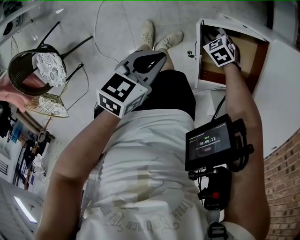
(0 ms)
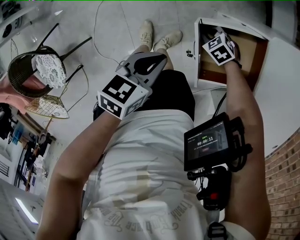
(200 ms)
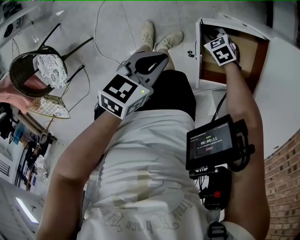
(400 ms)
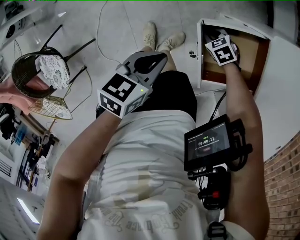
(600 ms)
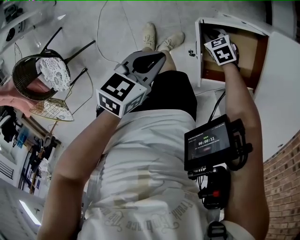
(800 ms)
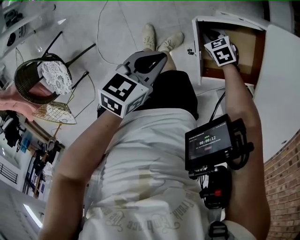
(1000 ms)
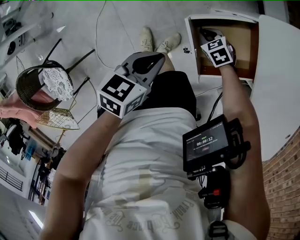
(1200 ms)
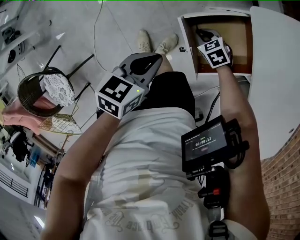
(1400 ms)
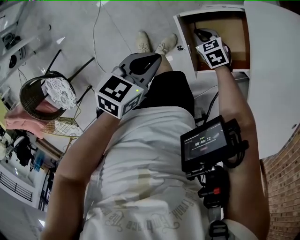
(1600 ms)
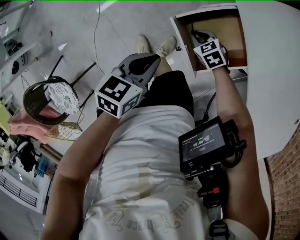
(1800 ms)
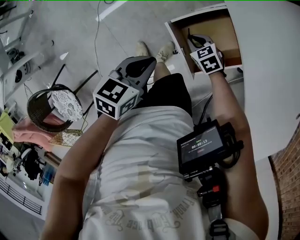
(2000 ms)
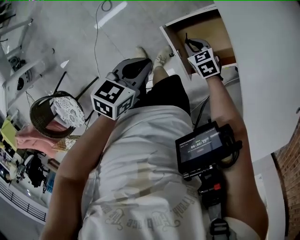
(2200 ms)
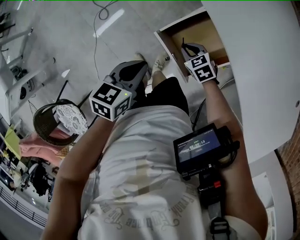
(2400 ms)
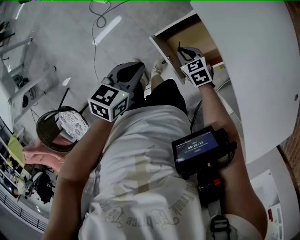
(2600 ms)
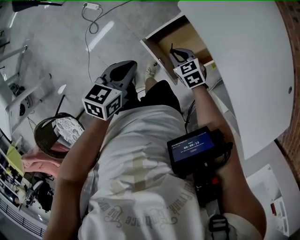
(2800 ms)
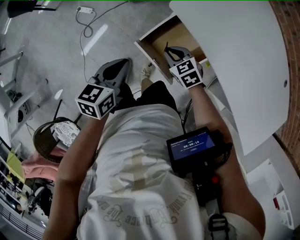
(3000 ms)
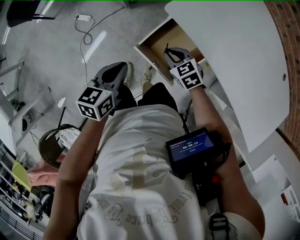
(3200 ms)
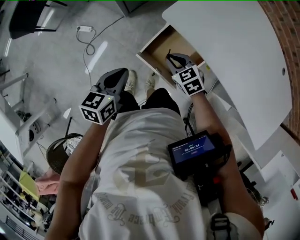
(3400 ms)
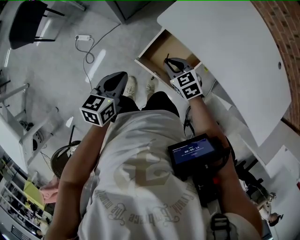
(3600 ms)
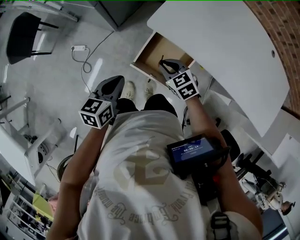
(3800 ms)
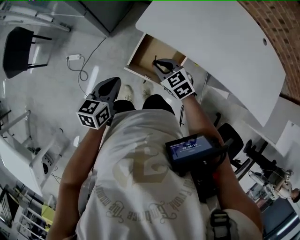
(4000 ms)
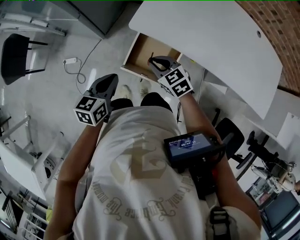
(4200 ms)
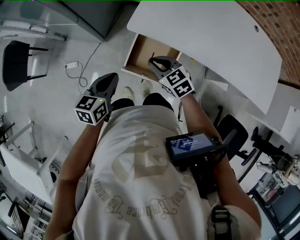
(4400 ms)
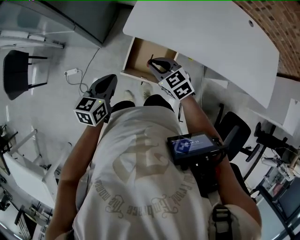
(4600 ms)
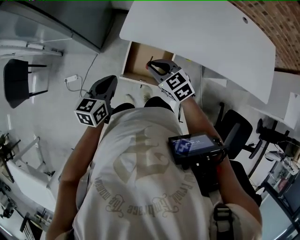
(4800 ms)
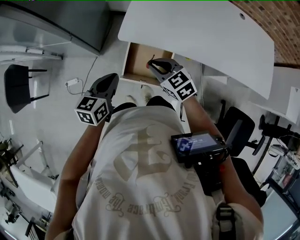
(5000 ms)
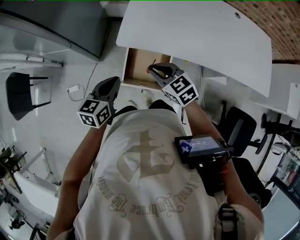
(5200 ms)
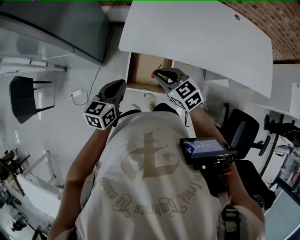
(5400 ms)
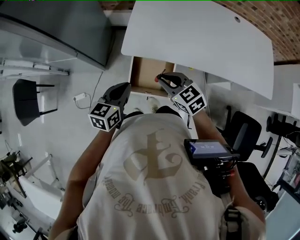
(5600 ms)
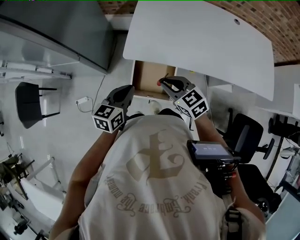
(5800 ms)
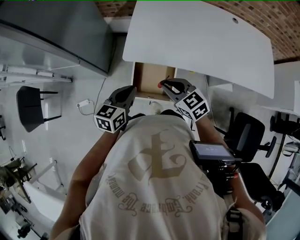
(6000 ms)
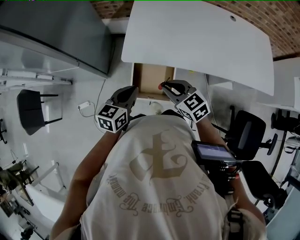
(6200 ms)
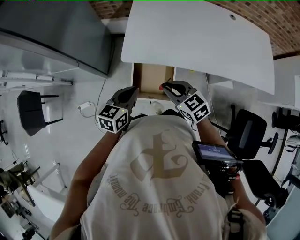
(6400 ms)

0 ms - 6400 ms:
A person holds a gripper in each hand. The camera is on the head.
0 ms - 1600 ms: The right gripper rotates about 20 degrees.
1600 ms - 3200 ms: The right gripper moves upward, approximately 20 cm, and rotates some 30 degrees; the left gripper travels upward and forward by approximately 10 cm.
3200 ms - 4800 ms: The left gripper travels upward by about 10 cm, and turns by approximately 30 degrees, while the right gripper moves upward, about 20 cm, and rotates roughly 30 degrees.
4800 ms - 6400 ms: The left gripper goes approximately 10 cm to the right. Meanwhile the right gripper shifts by roughly 5 cm.

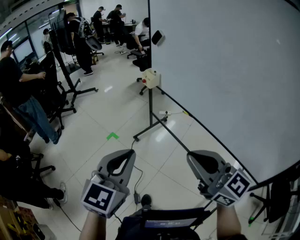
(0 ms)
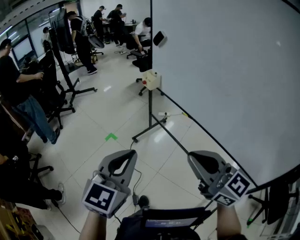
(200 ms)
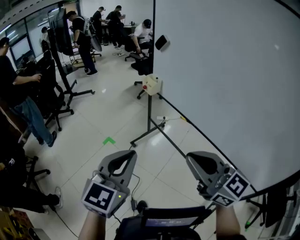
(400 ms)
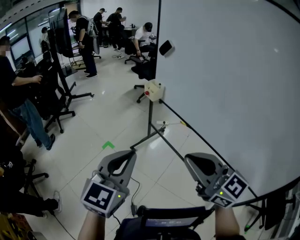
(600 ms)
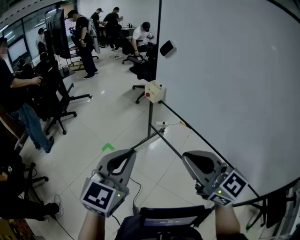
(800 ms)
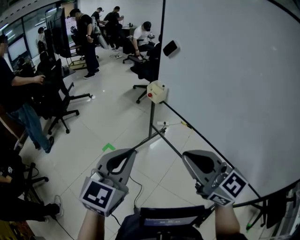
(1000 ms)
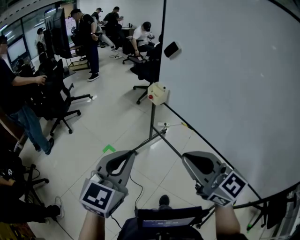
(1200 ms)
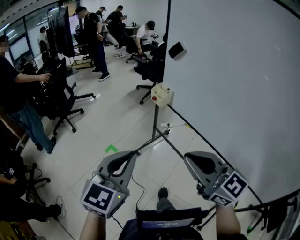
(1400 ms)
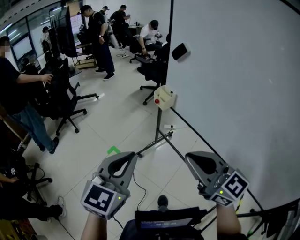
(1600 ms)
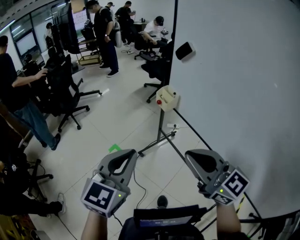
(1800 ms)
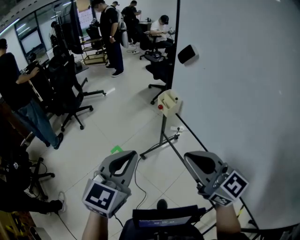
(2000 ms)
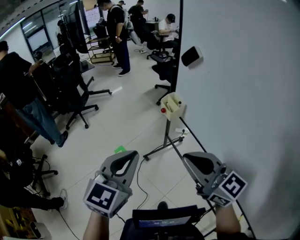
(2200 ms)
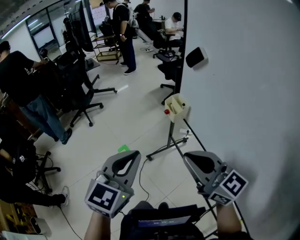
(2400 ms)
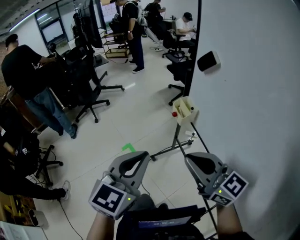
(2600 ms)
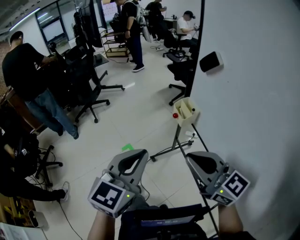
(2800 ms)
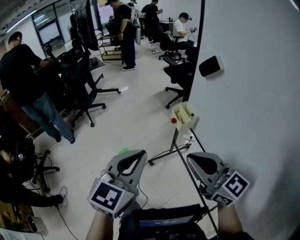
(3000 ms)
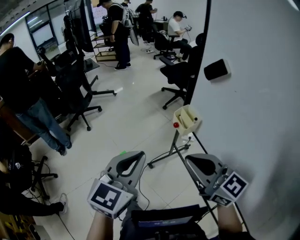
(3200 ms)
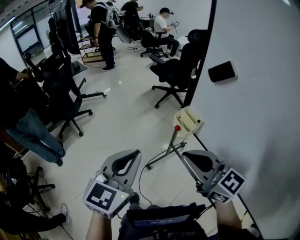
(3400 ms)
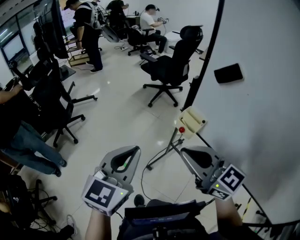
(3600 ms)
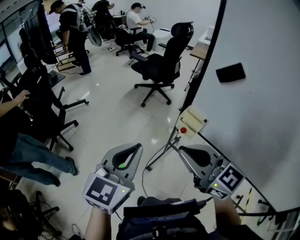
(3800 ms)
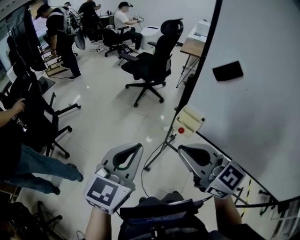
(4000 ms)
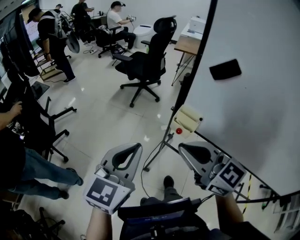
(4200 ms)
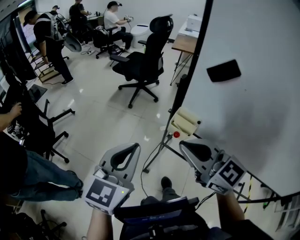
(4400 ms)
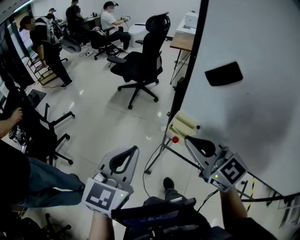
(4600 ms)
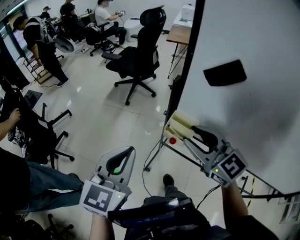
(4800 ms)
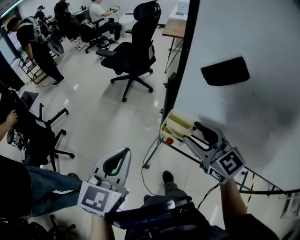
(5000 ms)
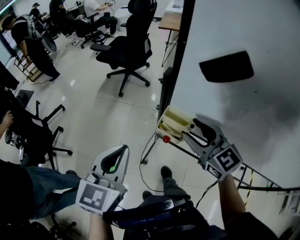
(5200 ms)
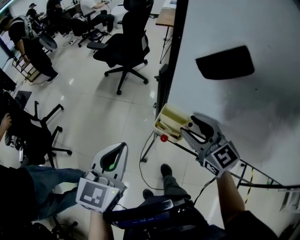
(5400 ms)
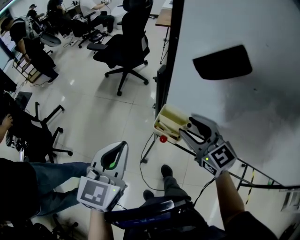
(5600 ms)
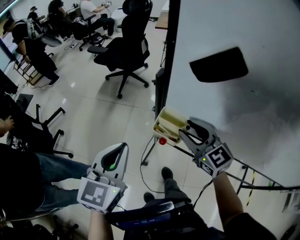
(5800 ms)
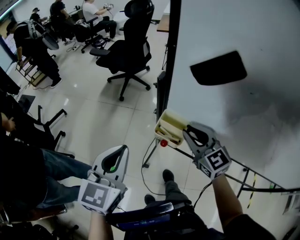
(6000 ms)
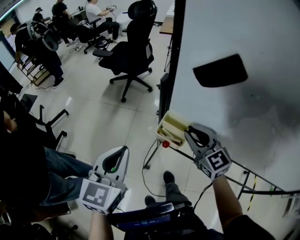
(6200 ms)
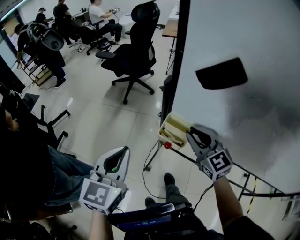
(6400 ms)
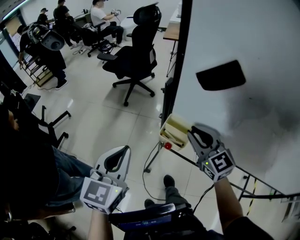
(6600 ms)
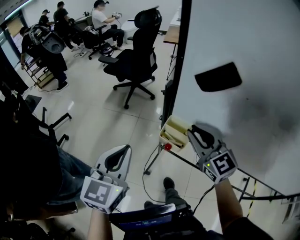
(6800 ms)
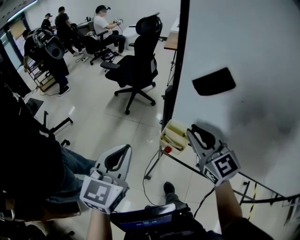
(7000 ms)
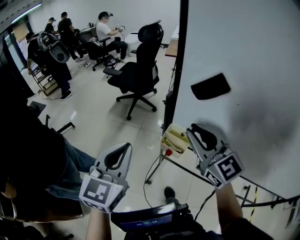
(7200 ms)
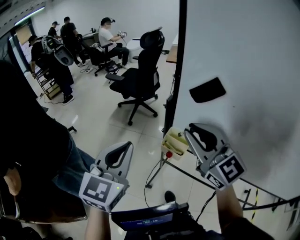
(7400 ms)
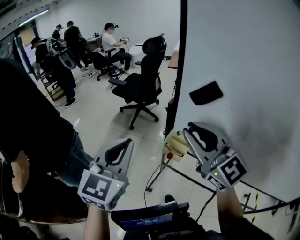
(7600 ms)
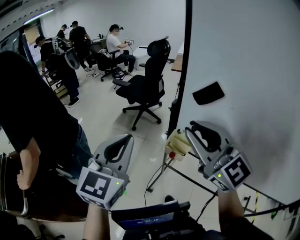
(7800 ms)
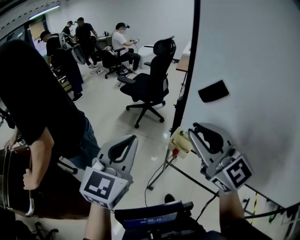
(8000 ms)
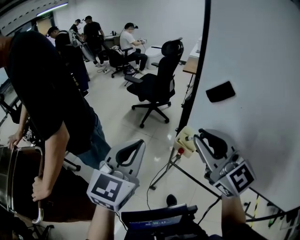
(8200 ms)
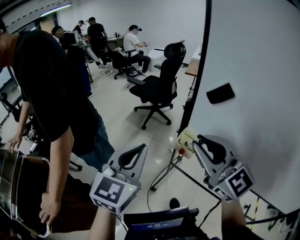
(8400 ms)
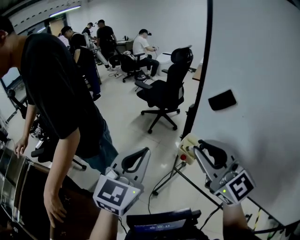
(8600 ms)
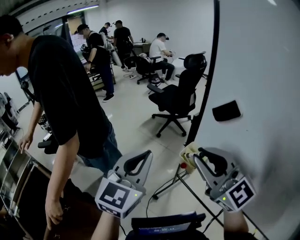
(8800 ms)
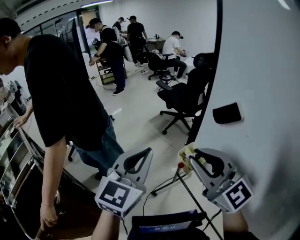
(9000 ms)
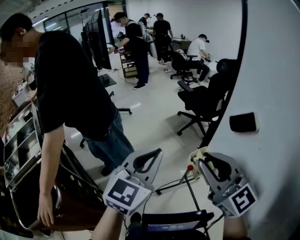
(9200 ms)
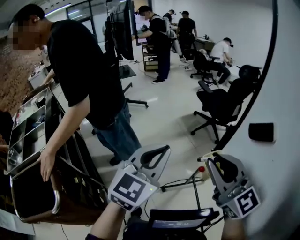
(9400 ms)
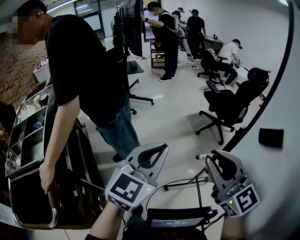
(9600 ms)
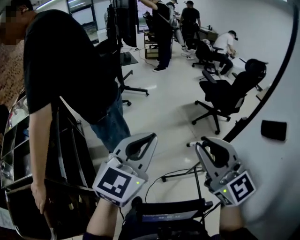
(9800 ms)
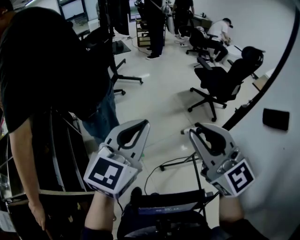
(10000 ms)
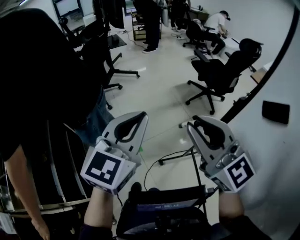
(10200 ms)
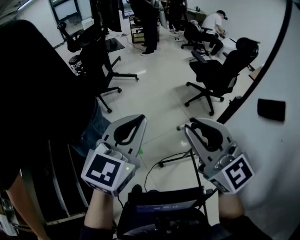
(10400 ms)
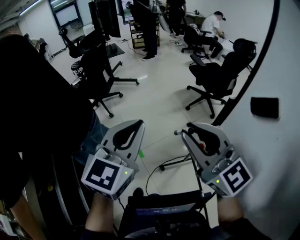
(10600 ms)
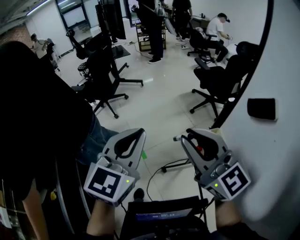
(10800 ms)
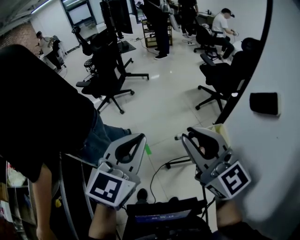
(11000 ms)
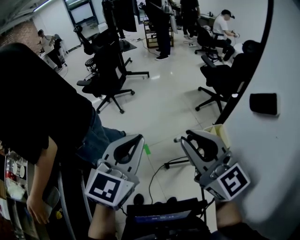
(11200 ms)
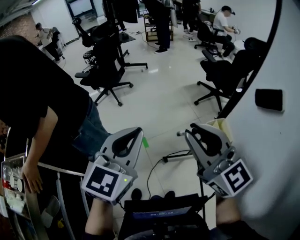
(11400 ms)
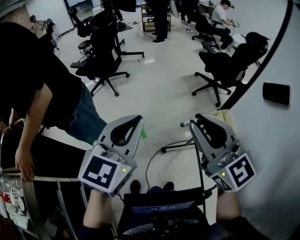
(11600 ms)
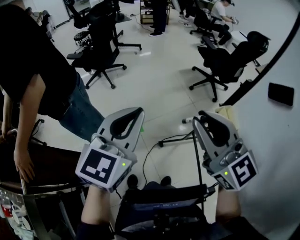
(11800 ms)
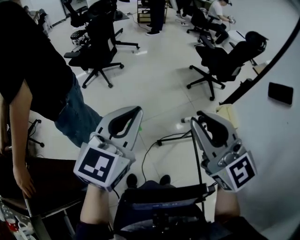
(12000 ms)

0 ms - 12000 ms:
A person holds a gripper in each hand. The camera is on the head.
0 ms - 1600 ms: The two grippers go about 20 cm forward.
1600 ms - 3000 ms: The right gripper moves forward, roughly 20 cm, while the left gripper shifts about 15 cm forward and to the right.
3000 ms - 4400 ms: The right gripper shifts by about 20 cm, and swivels some 30 degrees. The left gripper shifts by approximately 25 cm, and swivels some 30 degrees.
4400 ms - 6000 ms: The right gripper shifts about 25 cm forward, downward and to the right, rotates approximately 20 degrees, and opens, then closes once more, while the left gripper travels forward and downward by about 10 cm.
6000 ms - 7600 ms: The left gripper travels upward by approximately 15 cm, while the right gripper moves upward, some 25 cm, and turns by about 30 degrees.
7600 ms - 9000 ms: Both grippers move backward, some 5 cm. The left gripper swivels about 20 degrees. The right gripper changes its angle by about 30 degrees.
9000 ms - 10400 ms: The right gripper moves to the left and forward, approximately 10 cm; the left gripper moves to the left, approximately 10 cm.
10400 ms - 12000 ms: The right gripper moves backward and to the left, about 5 cm. The left gripper travels to the left and backward by roughly 10 cm.

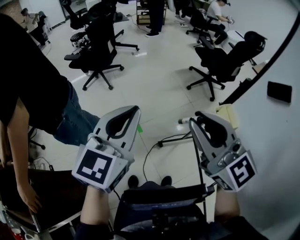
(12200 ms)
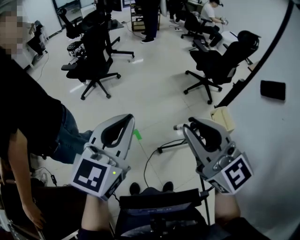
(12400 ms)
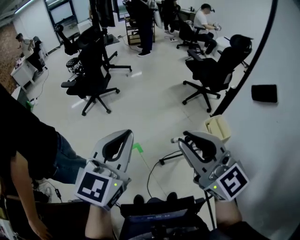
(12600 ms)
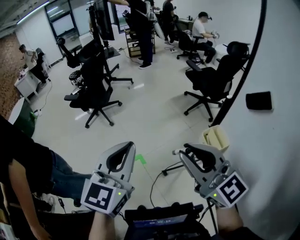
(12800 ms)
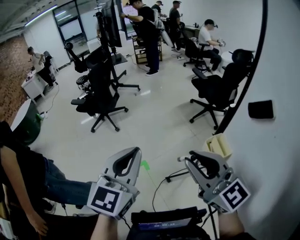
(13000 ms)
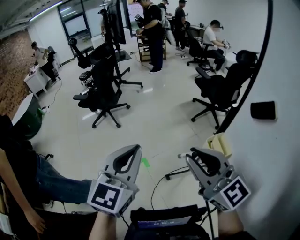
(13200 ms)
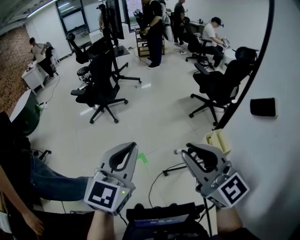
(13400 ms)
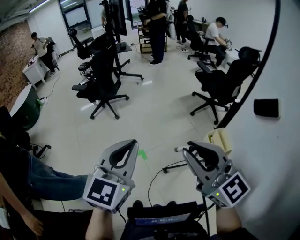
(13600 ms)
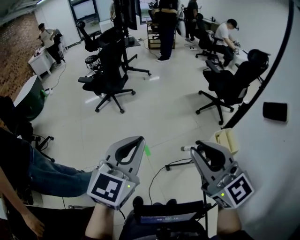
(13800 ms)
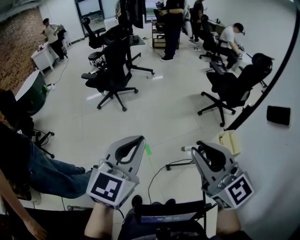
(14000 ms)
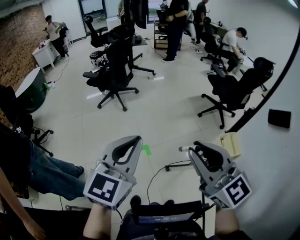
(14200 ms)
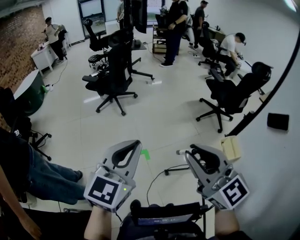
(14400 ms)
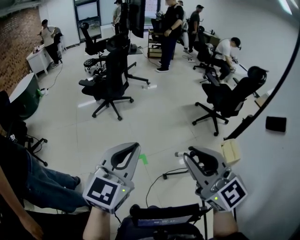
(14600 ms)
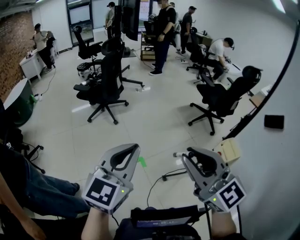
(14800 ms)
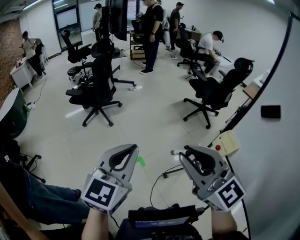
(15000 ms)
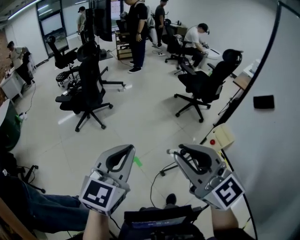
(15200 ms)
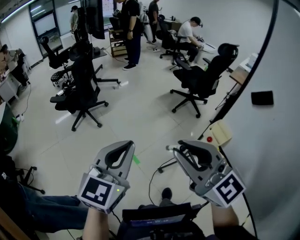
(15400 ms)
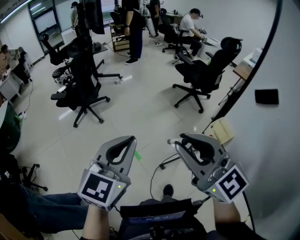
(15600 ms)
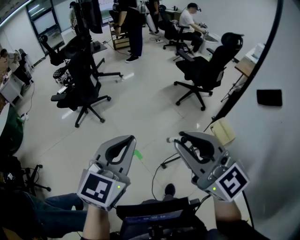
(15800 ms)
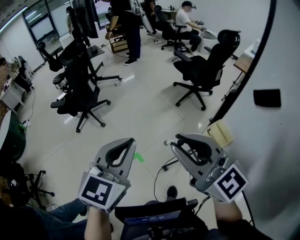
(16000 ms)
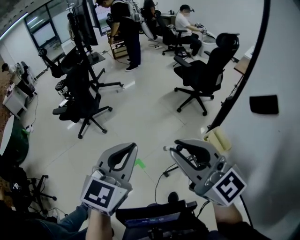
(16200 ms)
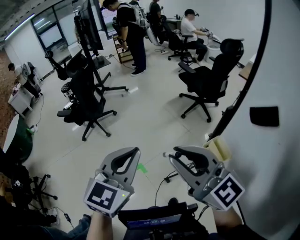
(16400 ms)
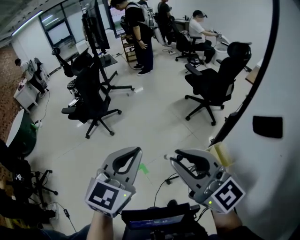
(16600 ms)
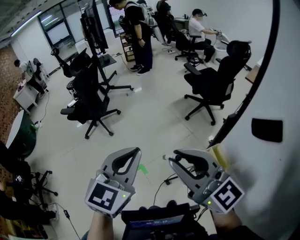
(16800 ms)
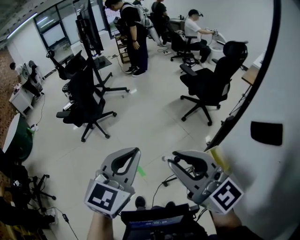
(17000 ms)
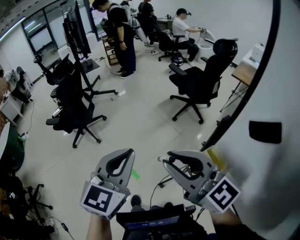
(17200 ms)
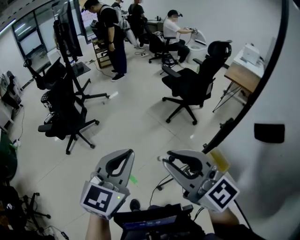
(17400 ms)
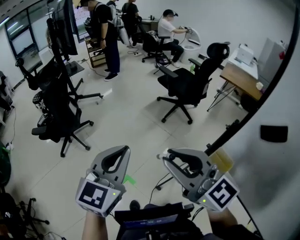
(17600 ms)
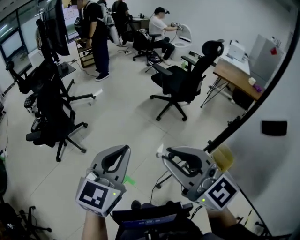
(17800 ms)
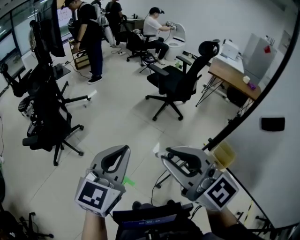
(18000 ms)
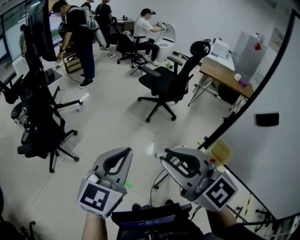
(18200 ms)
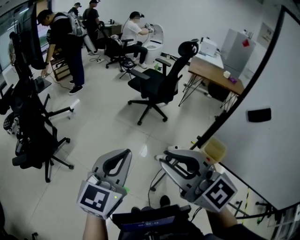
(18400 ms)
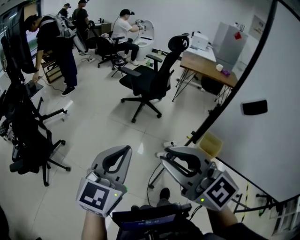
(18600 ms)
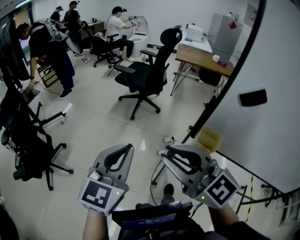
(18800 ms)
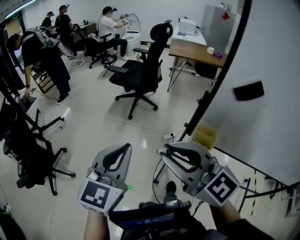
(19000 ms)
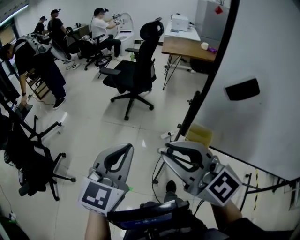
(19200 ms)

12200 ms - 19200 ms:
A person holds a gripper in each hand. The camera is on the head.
12200 ms - 13600 ms: There are only small adjustments of the grippers.
13600 ms - 15000 ms: The two grippers go roughly 15 cm to the left.
15000 ms - 16400 ms: The grippers both shift to the right and forward by roughly 15 cm.
16400 ms - 17800 ms: Both grippers move forward and to the left, some 15 cm.
17800 ms - 19200 ms: The two grippers go some 15 cm to the right. The left gripper rotates some 30 degrees; the right gripper changes its angle by roughly 20 degrees.
